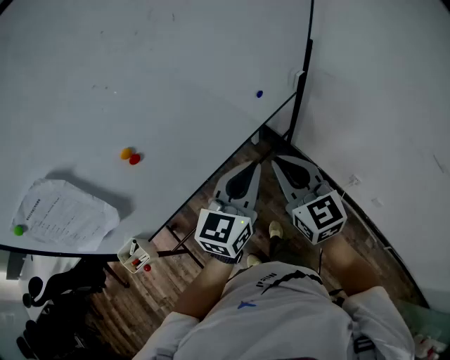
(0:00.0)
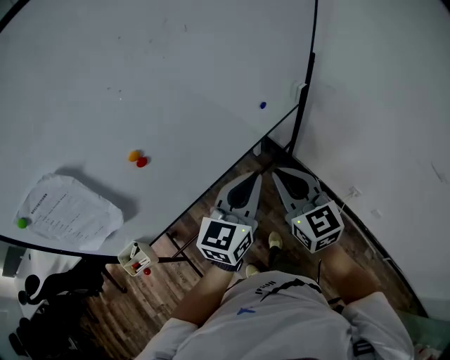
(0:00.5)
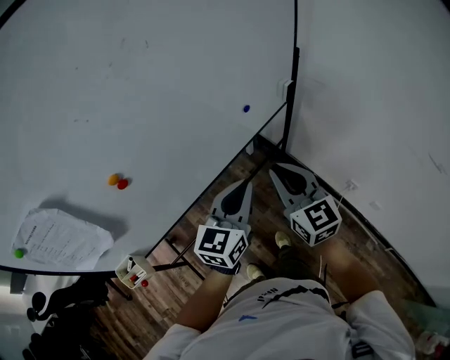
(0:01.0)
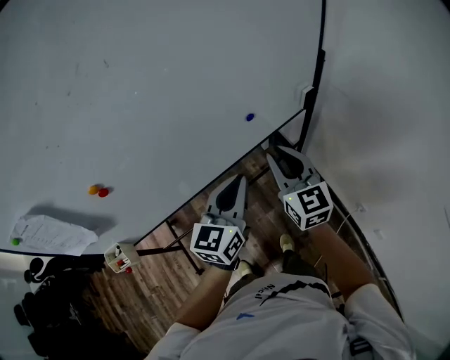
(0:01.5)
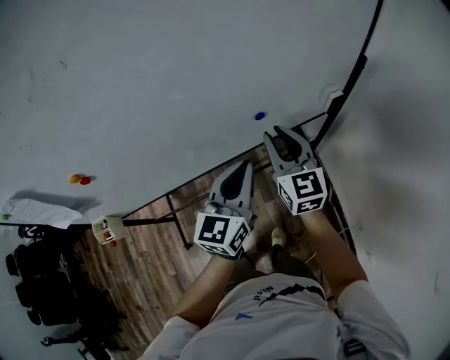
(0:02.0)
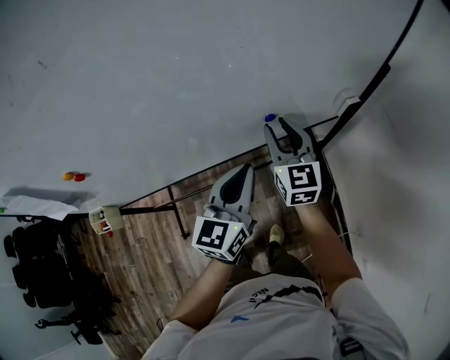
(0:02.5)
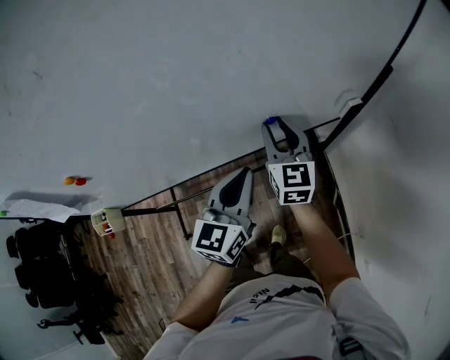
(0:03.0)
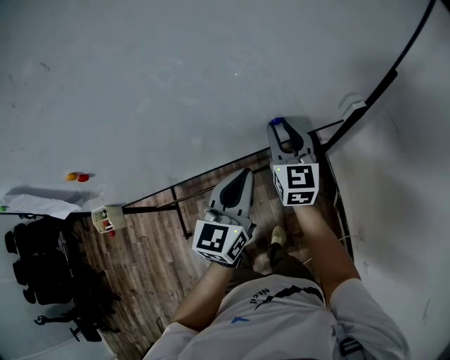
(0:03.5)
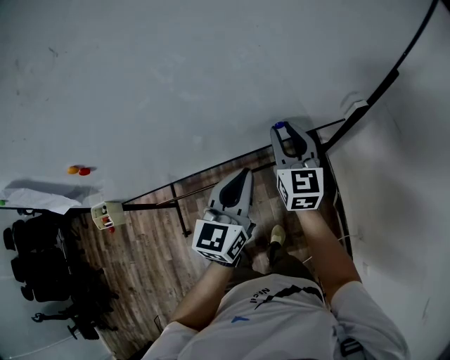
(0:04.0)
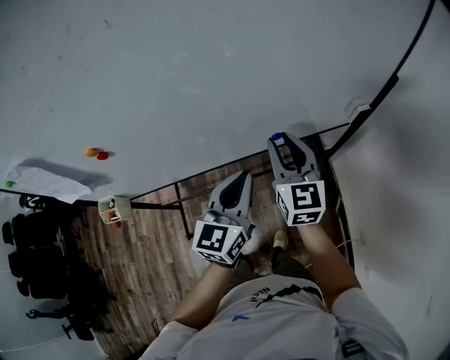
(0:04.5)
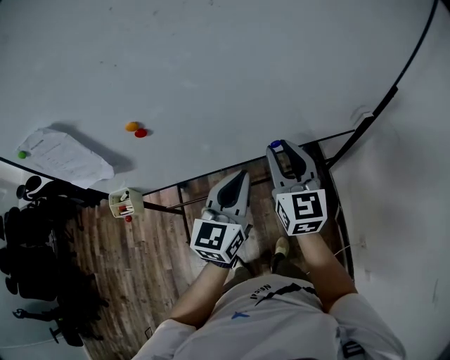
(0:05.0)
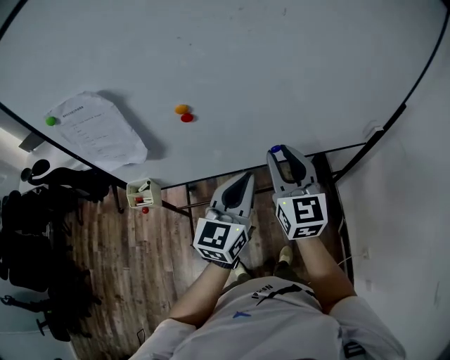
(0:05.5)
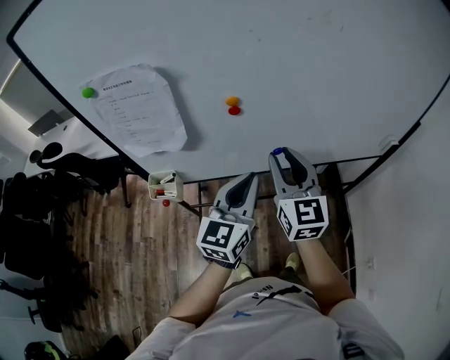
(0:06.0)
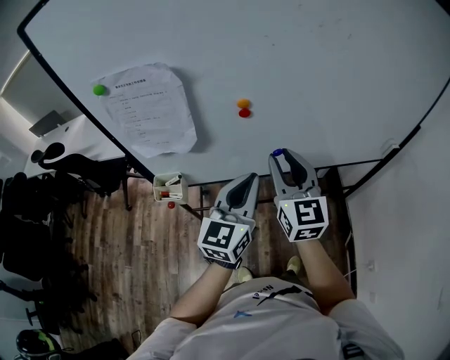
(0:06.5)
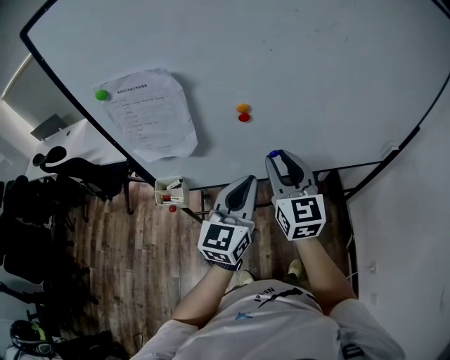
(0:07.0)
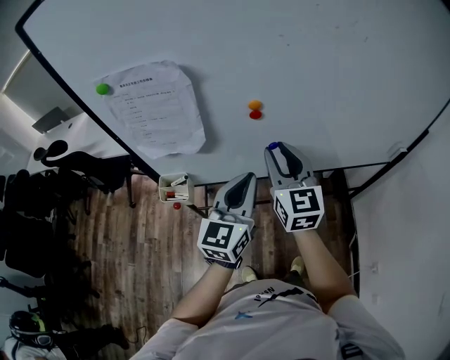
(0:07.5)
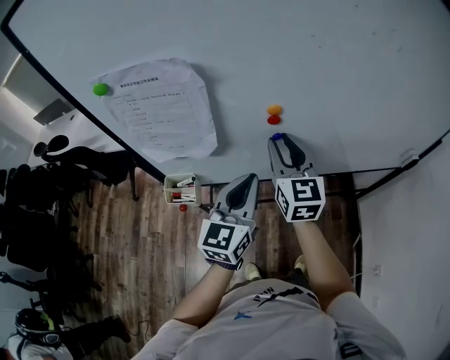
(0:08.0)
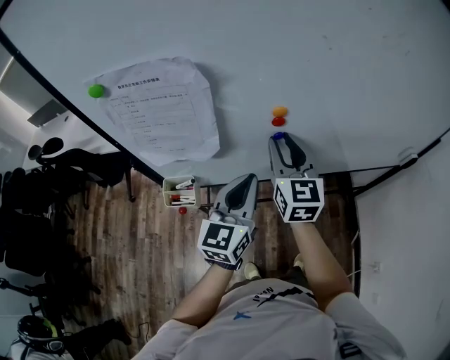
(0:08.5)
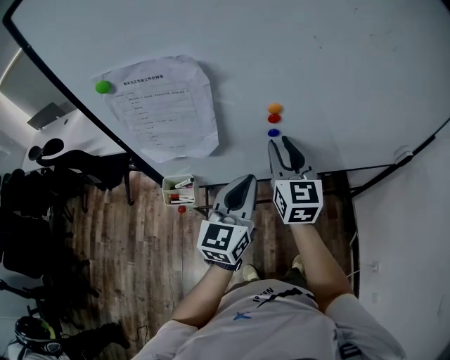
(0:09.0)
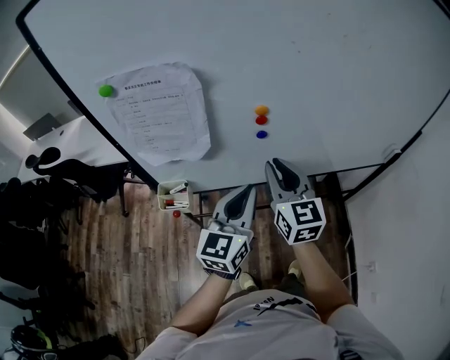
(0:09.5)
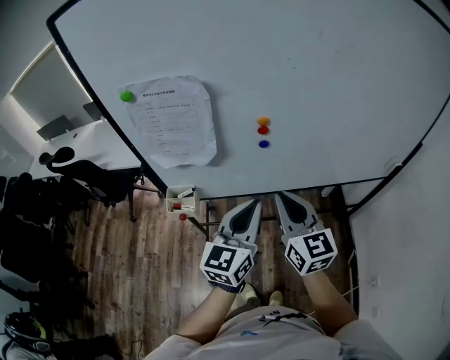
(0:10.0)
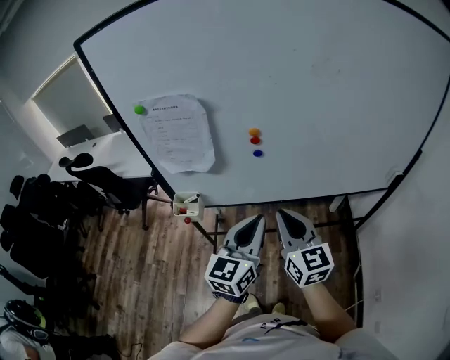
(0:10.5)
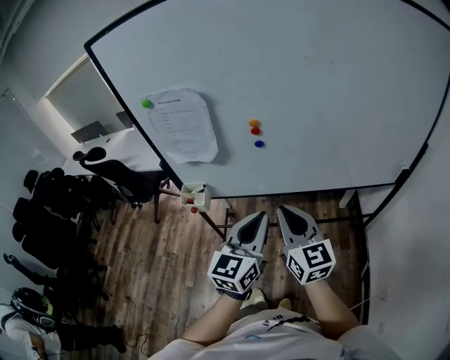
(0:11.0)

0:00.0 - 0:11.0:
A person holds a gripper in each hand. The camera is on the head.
0:00.0 - 0:02.0: The right gripper shifts about 30 cm forward and downward; the left gripper heads forward, downward and to the right, covering approximately 20 cm, and swivels some 30 degrees.
0:02.0 - 0:03.5: The right gripper travels forward by roughly 5 cm.
0:03.5 - 0:05.5: The two grippers go roughly 30 cm to the left, backward and upward.
0:05.5 - 0:07.5: The grippers both shift to the left by approximately 15 cm.
0:07.5 - 0:09.0: The right gripper ends up about 5 cm from where it was, while the left gripper moves about 5 cm.
0:09.0 - 0:11.0: The left gripper goes roughly 20 cm backward and to the right. The right gripper is displaced backward by roughly 20 cm, and closes up.

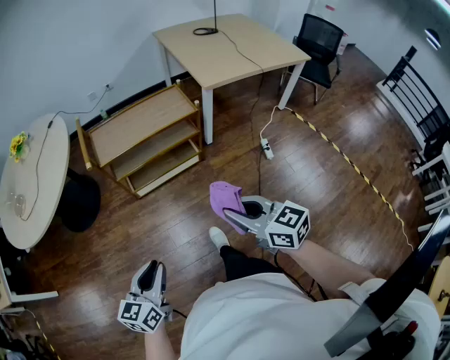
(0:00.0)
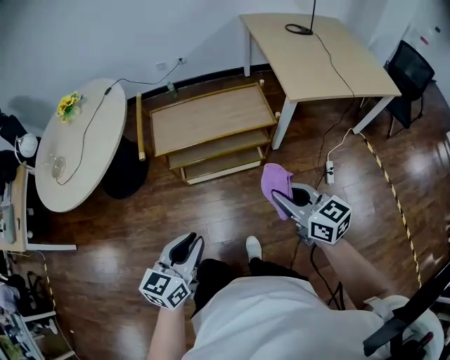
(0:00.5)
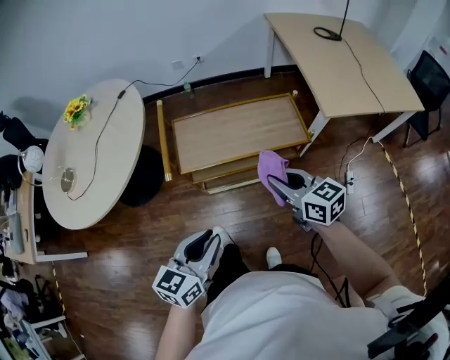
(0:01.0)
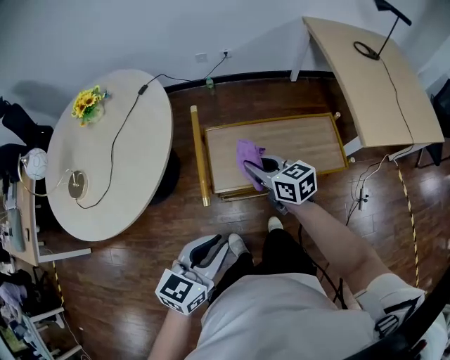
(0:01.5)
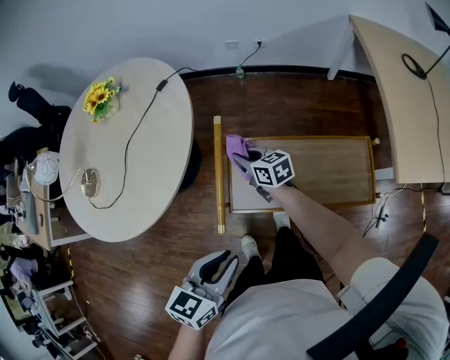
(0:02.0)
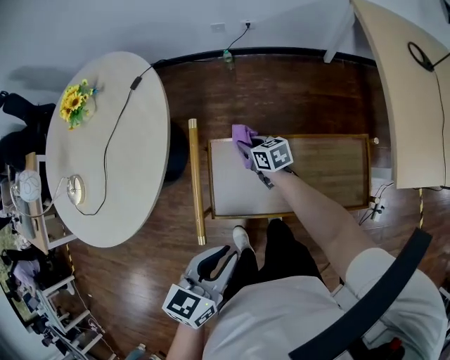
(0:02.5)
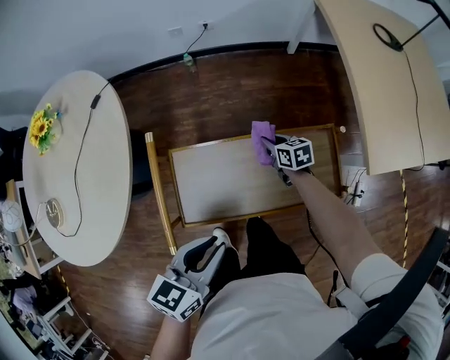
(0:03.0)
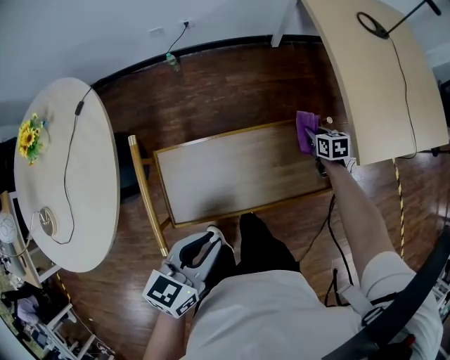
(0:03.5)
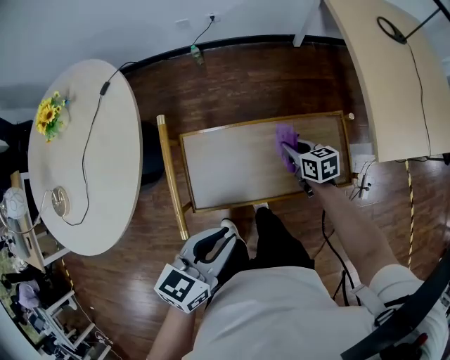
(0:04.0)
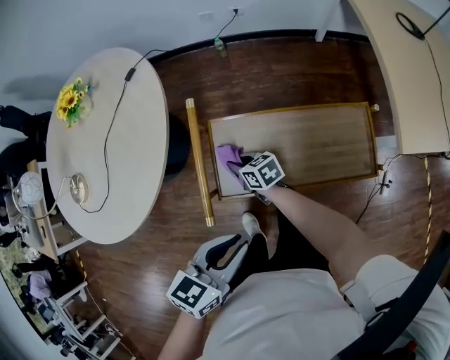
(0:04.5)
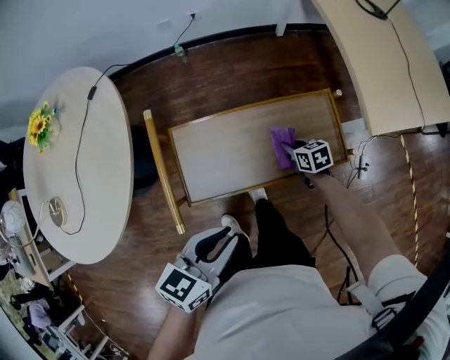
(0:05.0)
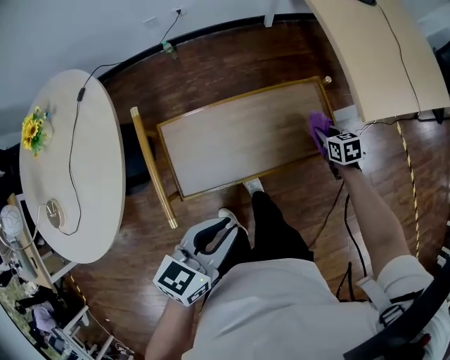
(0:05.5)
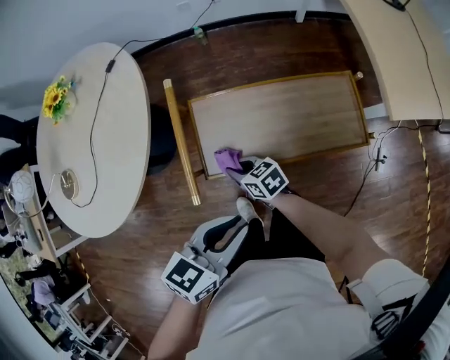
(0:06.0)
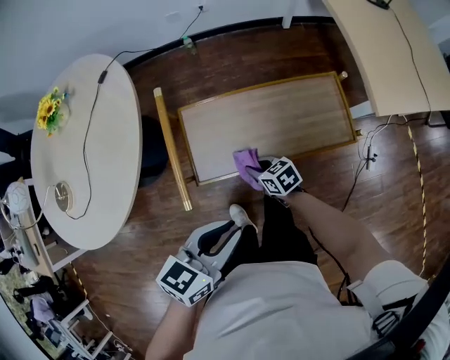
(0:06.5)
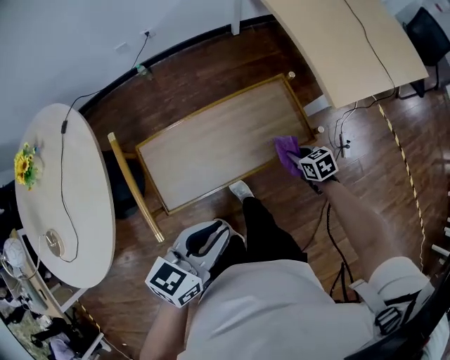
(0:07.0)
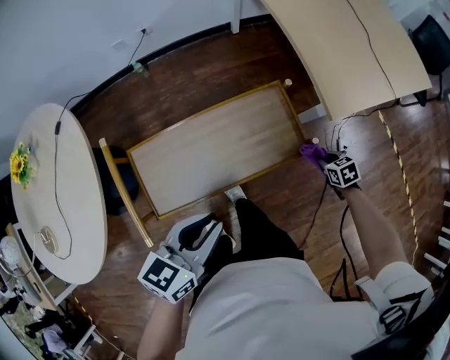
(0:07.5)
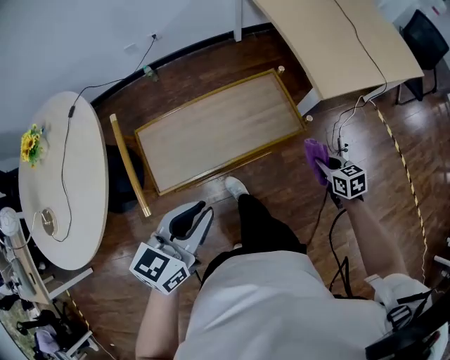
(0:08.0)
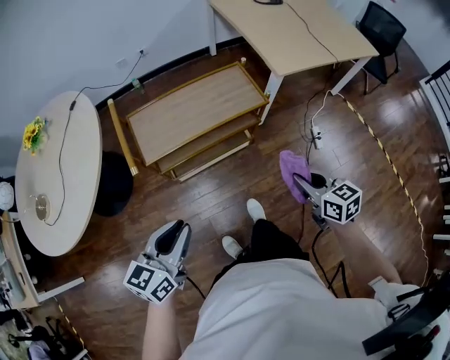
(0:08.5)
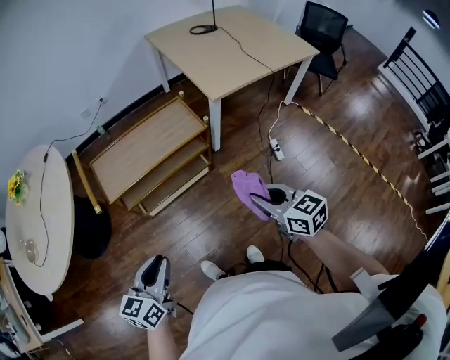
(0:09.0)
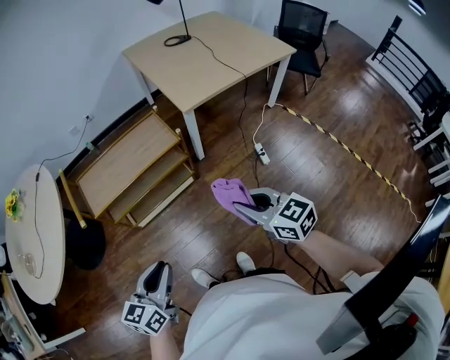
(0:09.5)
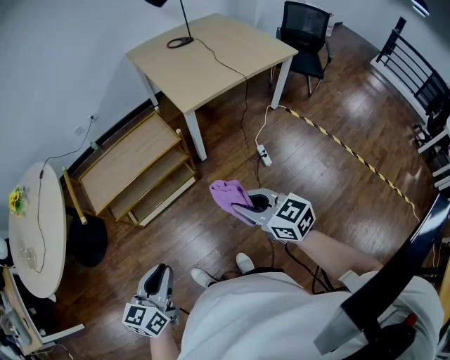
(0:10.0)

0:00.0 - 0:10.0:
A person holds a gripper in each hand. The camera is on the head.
0:00.0 - 0:02.0: The pair of grippers is taken forward, about 60 cm. The right gripper rotates about 20 degrees.
0:02.0 - 0:04.0: The right gripper changes its angle by approximately 20 degrees. The left gripper moves approximately 15 cm.
0:04.0 - 0:06.0: The right gripper ends up approximately 30 cm from where it was, and changes its angle by about 20 degrees; the left gripper changes place by approximately 10 cm.
0:06.0 - 0:08.0: The right gripper shifts by approximately 50 cm, and swivels roughly 40 degrees.
0:08.0 - 0:10.0: The right gripper is displaced backward and upward by roughly 40 cm, and rotates approximately 30 degrees. Meanwhile the left gripper goes approximately 35 cm backward and to the right.

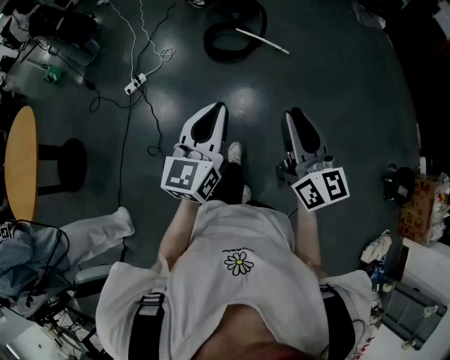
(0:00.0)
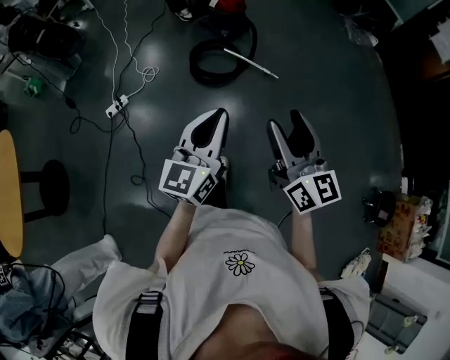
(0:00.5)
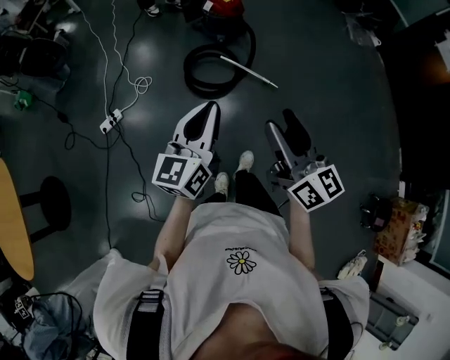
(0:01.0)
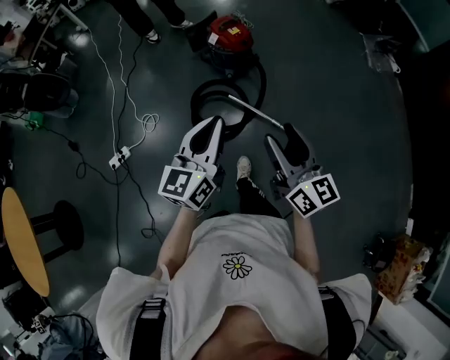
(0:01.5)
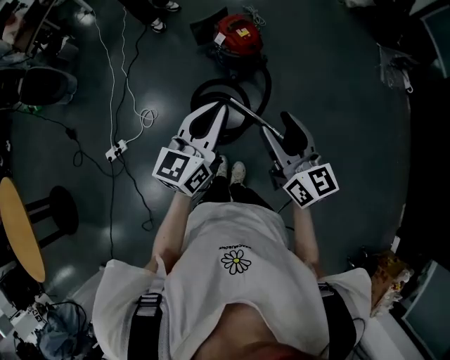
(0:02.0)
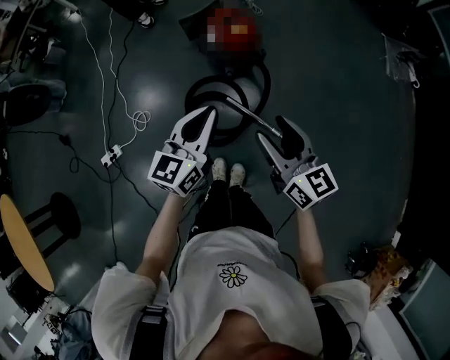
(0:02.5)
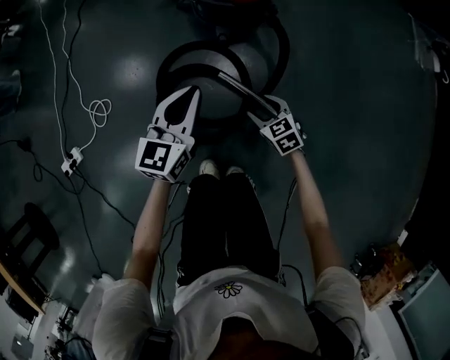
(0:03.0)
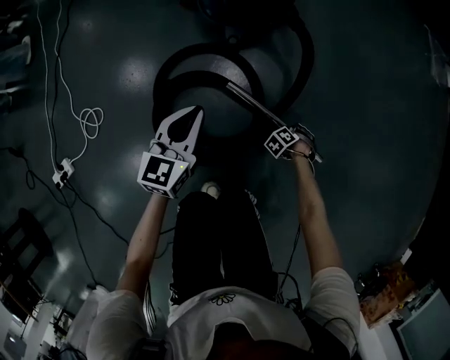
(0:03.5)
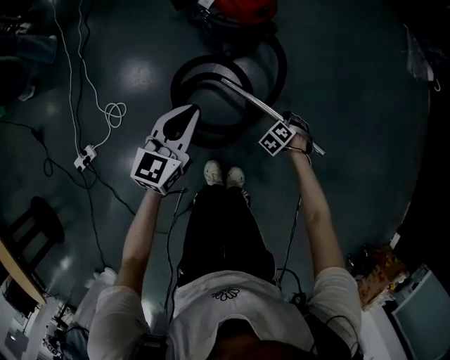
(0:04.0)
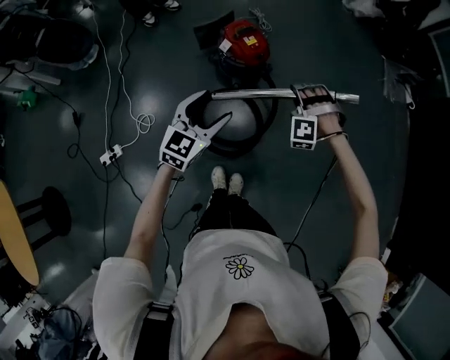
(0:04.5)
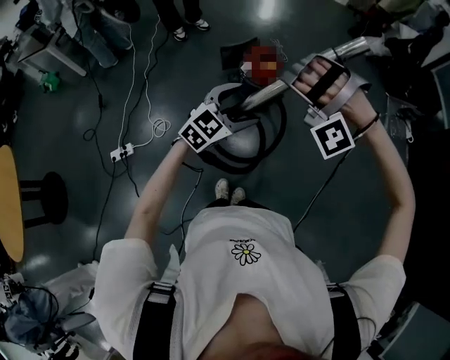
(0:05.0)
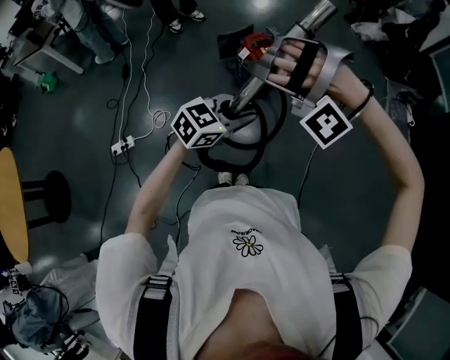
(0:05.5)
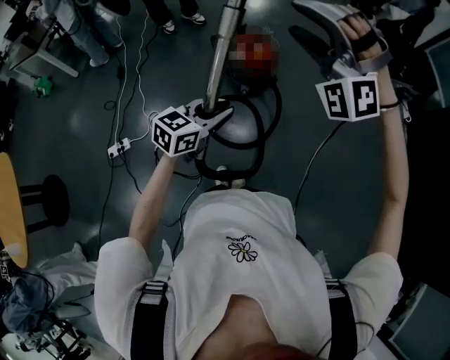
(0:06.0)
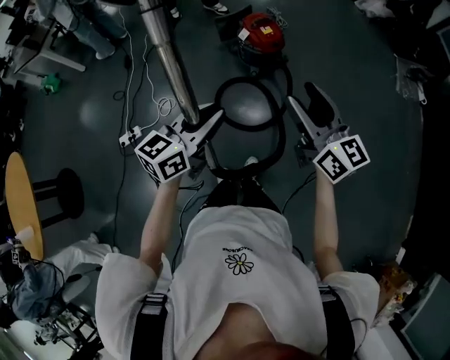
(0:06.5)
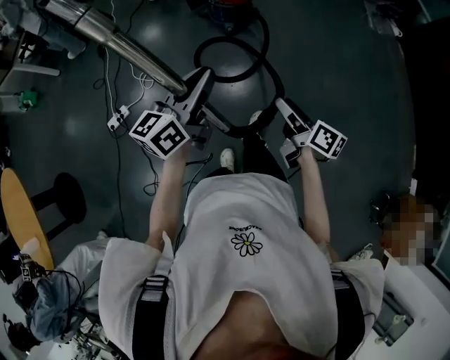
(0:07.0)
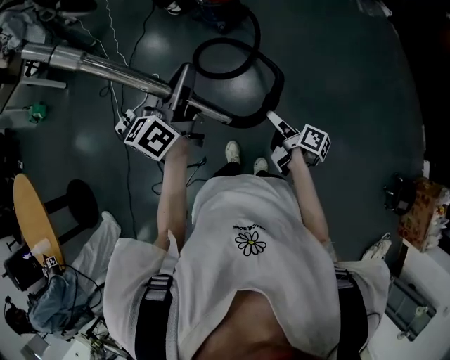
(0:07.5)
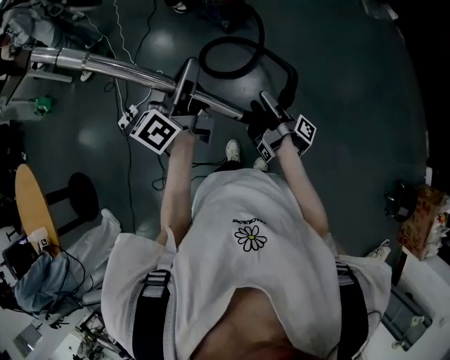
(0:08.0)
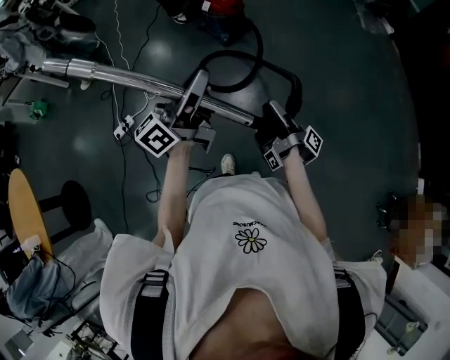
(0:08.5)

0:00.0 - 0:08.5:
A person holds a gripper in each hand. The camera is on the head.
0:00.0 - 0:02.0: The left gripper moves about 80 cm.
0:02.0 - 0:04.0: The left gripper heads downward, covering about 40 cm.
0:04.0 - 0:06.5: The left gripper shifts approximately 35 cm upward, and opens, then closes once more.
0:06.5 - 0:08.5: The left gripper changes place by some 25 cm, and points its fingers about 30 degrees further upward.
